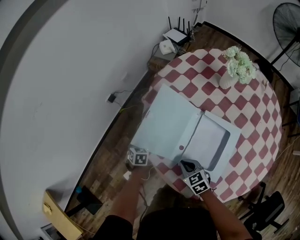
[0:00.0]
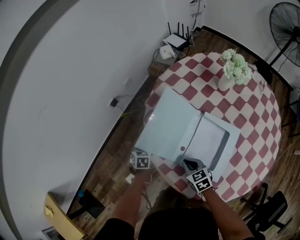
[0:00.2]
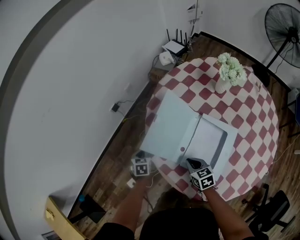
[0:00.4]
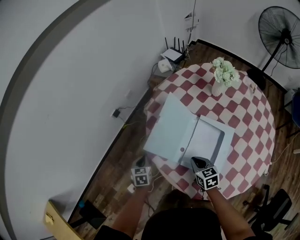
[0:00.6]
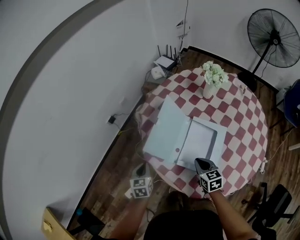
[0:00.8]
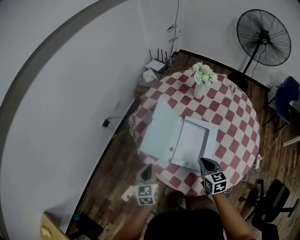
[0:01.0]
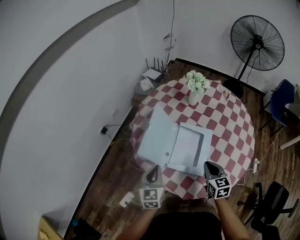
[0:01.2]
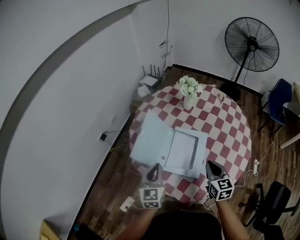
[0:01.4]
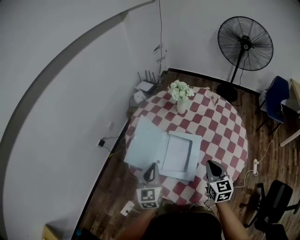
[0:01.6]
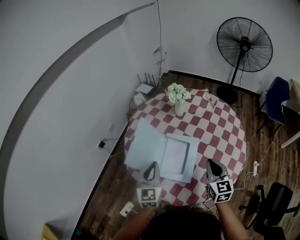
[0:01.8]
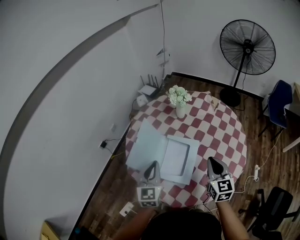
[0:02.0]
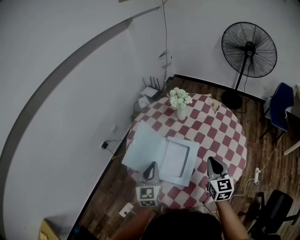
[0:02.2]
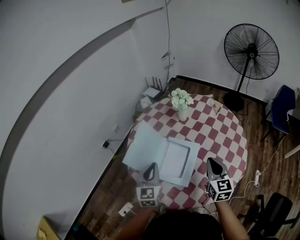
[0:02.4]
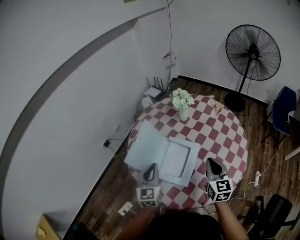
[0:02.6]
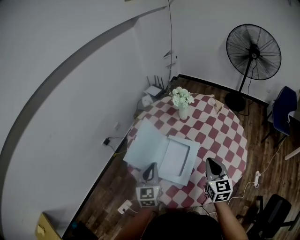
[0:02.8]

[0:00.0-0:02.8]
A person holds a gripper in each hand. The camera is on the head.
0:00.0 to 0:01.4: The right gripper moves roughly 35 cm, and turns by some 40 degrees, while the left gripper moves upward, some 35 cm, and tilts its fingers about 50 degrees upward.
0:01.4 to 0:02.8: The left gripper heads to the right, covering approximately 10 cm. The right gripper moves to the right and upward, some 10 cm.

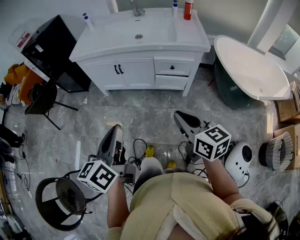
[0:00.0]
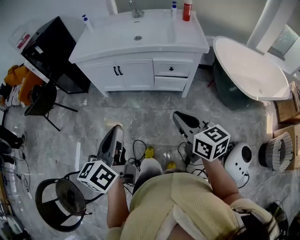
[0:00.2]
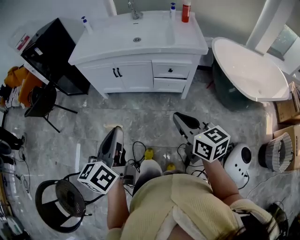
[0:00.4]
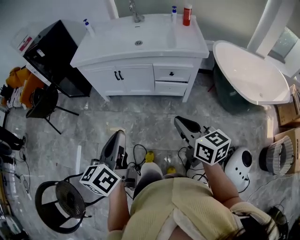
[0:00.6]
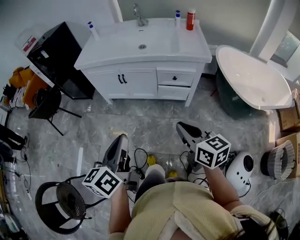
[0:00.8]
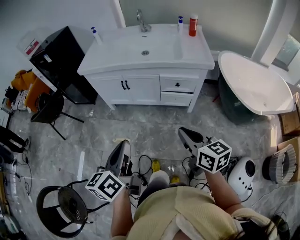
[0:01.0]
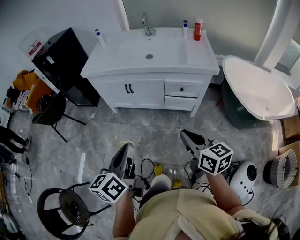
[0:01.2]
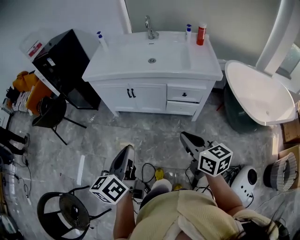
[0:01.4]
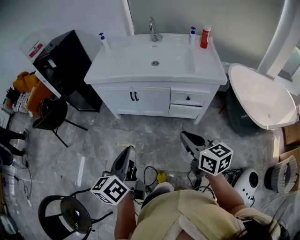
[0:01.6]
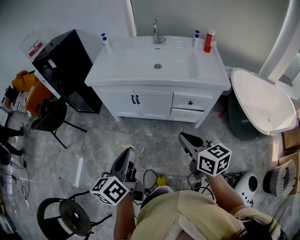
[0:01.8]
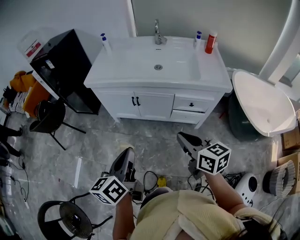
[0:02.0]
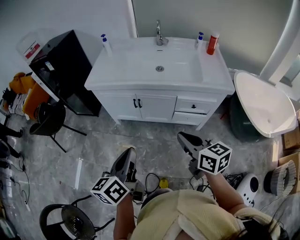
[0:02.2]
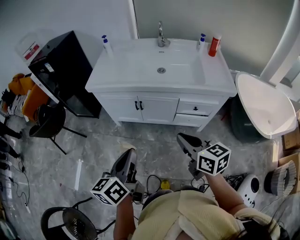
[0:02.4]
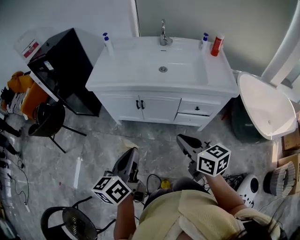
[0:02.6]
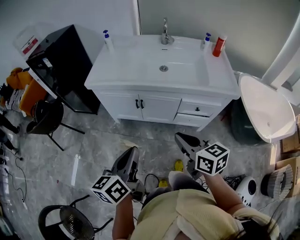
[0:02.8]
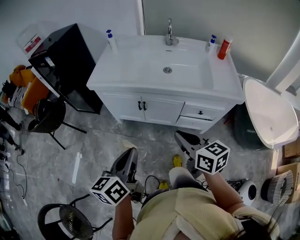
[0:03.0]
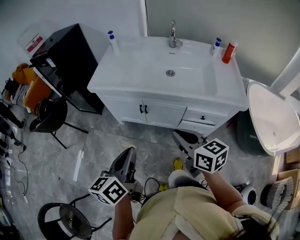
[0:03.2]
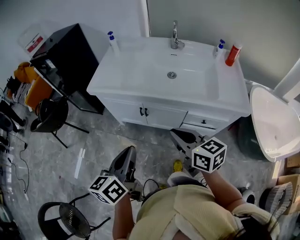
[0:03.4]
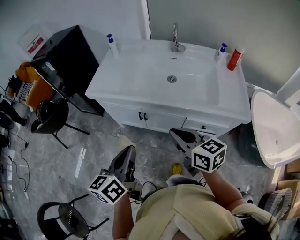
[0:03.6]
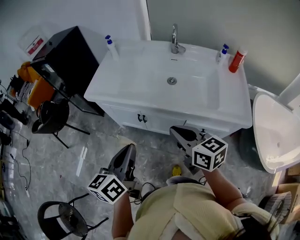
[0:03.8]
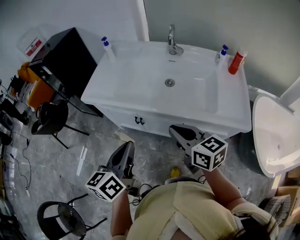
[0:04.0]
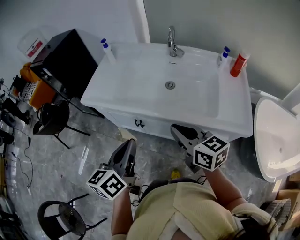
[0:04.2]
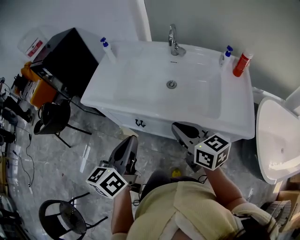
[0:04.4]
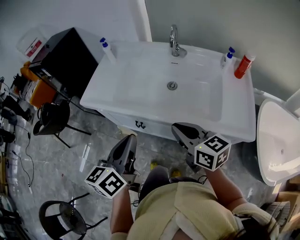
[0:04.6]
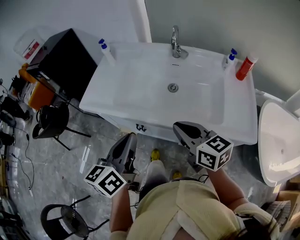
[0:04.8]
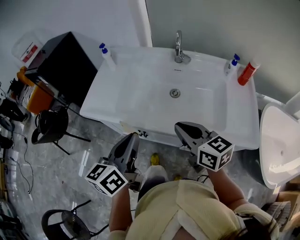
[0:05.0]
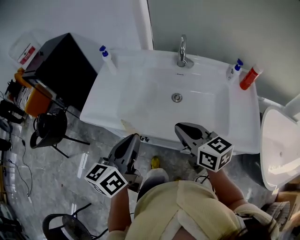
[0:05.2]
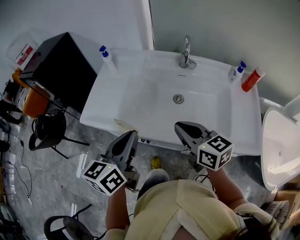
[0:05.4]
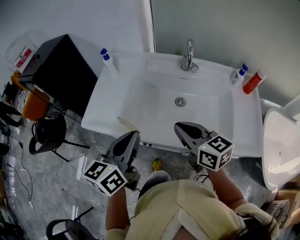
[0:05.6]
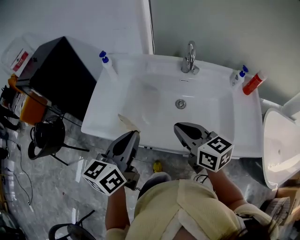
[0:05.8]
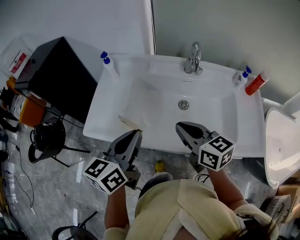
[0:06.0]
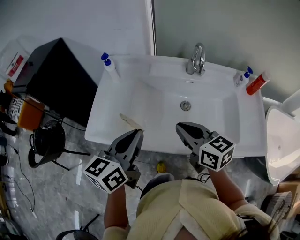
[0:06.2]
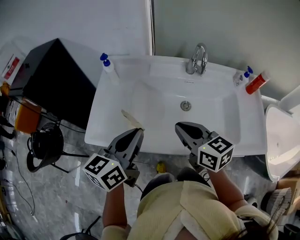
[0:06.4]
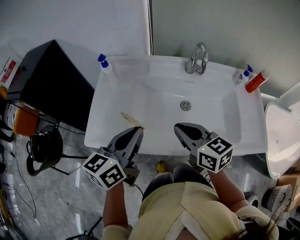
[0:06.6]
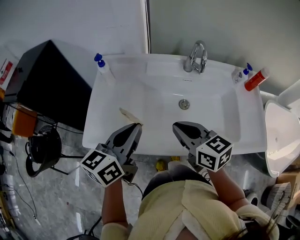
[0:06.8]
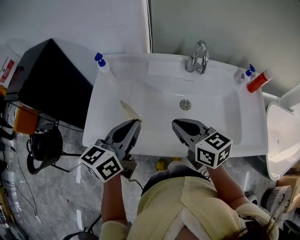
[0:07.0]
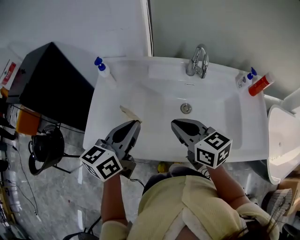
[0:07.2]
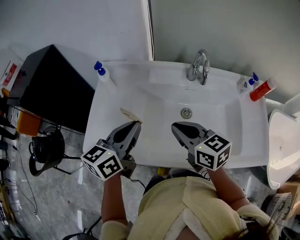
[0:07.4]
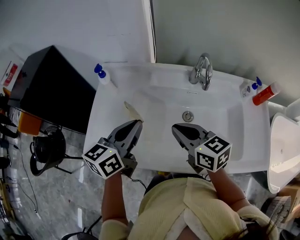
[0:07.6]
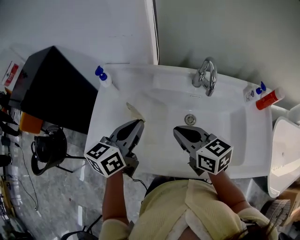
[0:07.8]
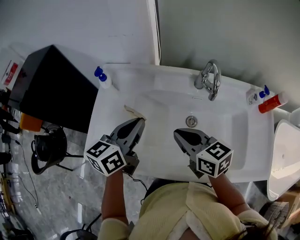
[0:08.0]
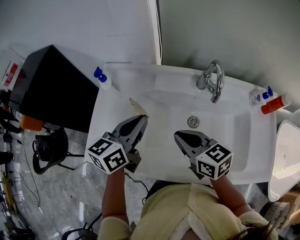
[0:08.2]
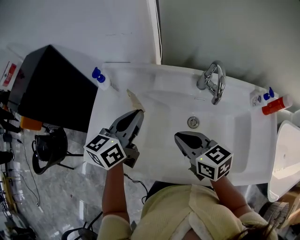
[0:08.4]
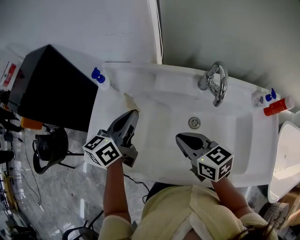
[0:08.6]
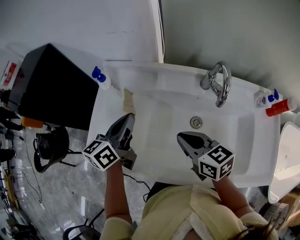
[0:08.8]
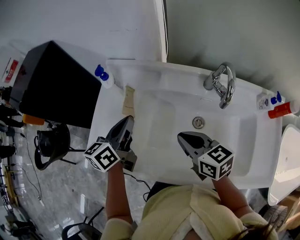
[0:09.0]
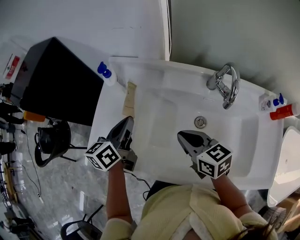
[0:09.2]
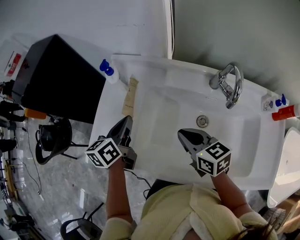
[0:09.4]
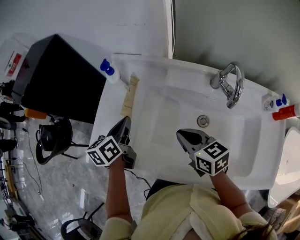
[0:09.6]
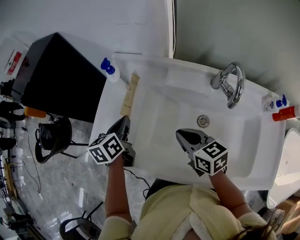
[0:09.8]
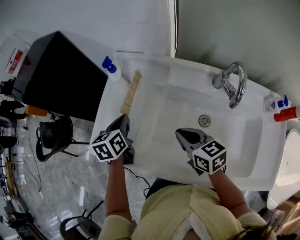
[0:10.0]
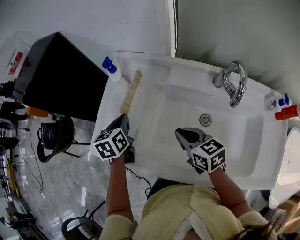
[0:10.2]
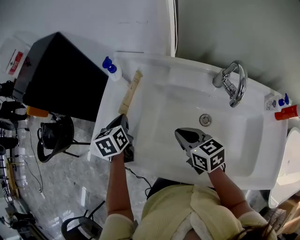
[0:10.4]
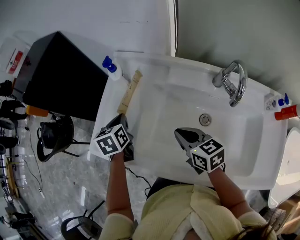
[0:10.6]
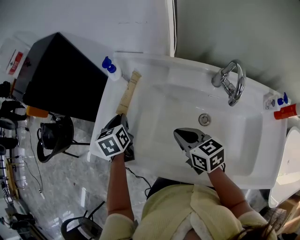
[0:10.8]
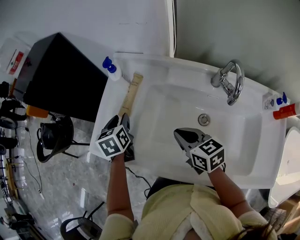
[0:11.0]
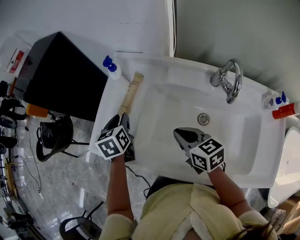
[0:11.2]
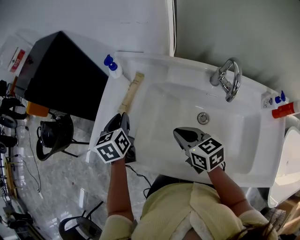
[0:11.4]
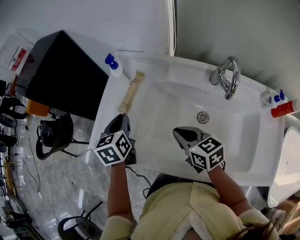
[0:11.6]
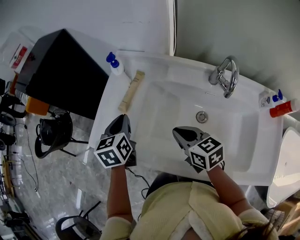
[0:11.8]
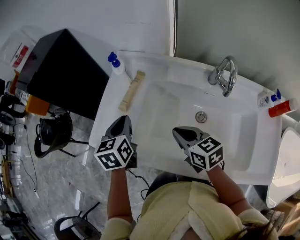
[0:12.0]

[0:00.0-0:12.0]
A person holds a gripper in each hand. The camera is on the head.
0:00.0 to 0:01.6: Both grippers move forward, about 10 cm.
0:01.6 to 0:03.0: The left gripper shifts roughly 15 cm forward. Meanwhile the right gripper shifts about 20 cm forward and to the left.
0:03.0 to 0:04.4: The two grippers go some 20 cm forward and to the right.
0:04.4 to 0:06.0: The grippers both shift forward by about 20 cm.
0:06.0 to 0:07.6: Both grippers move forward, about 10 cm.
0:07.6 to 0:09.0: The right gripper moves downward, some 5 cm; the left gripper goes approximately 10 cm forward, downward and to the left.
0:09.0 to 0:10.4: The left gripper heads downward and to the left, covering roughly 10 cm, and changes its angle by some 40 degrees; the right gripper shifts by about 5 cm.
0:10.4 to 0:12.0: The left gripper moves upward and backward, roughly 10 cm, and opens, then closes once more.

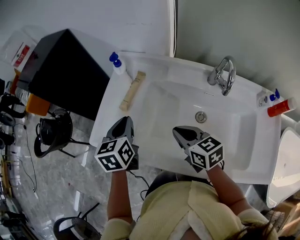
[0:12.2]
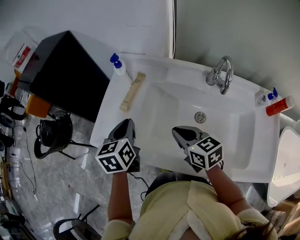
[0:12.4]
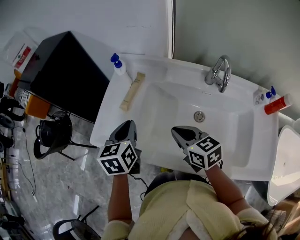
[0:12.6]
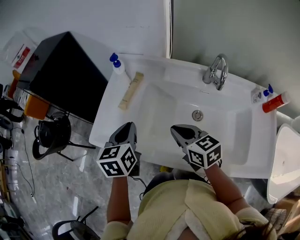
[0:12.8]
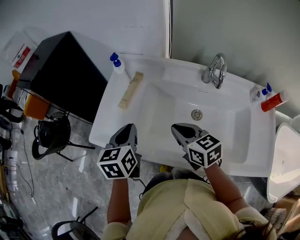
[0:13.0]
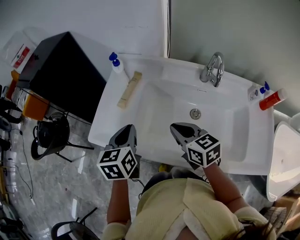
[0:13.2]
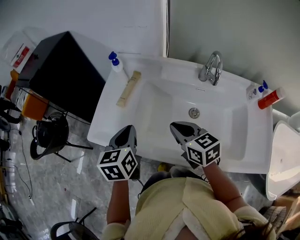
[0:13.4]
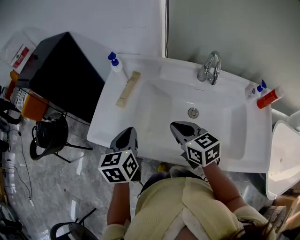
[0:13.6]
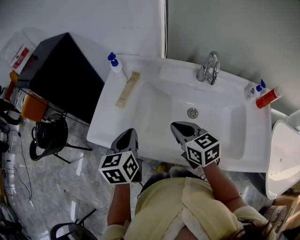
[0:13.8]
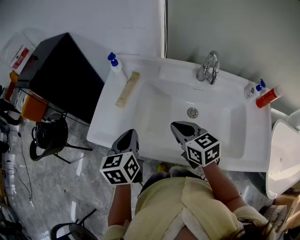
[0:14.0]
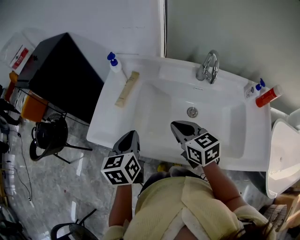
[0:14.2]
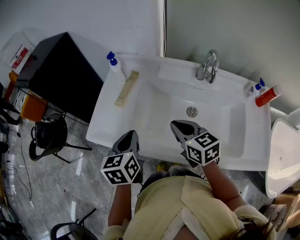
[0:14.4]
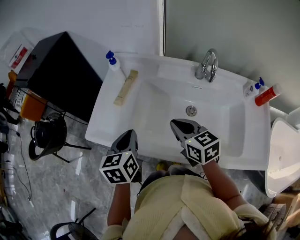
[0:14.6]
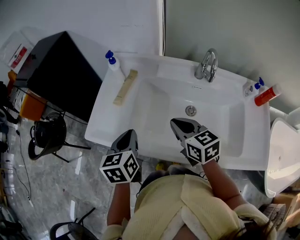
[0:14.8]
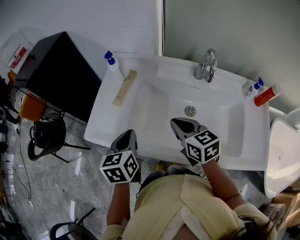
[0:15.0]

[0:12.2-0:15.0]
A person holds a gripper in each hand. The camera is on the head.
0:12.2 to 0:13.6: The left gripper shifts some 10 cm backward.
0:13.6 to 0:15.0: The grippers stay close to where they were, moving slightly.

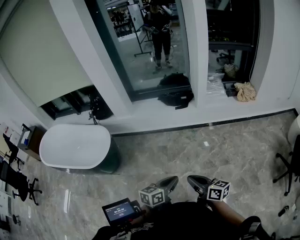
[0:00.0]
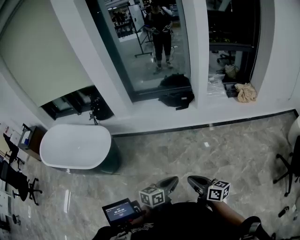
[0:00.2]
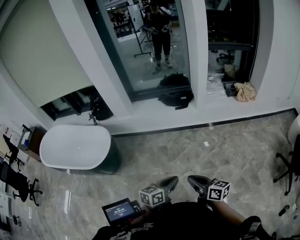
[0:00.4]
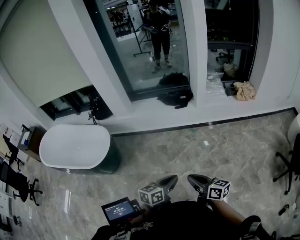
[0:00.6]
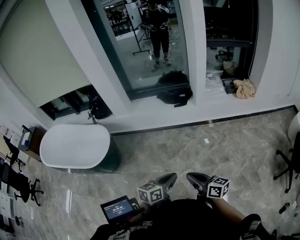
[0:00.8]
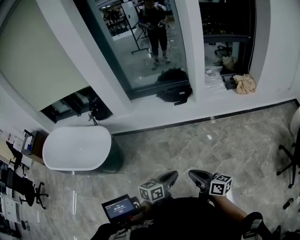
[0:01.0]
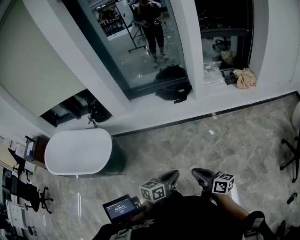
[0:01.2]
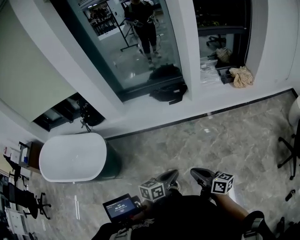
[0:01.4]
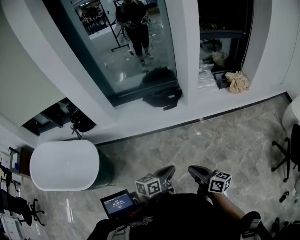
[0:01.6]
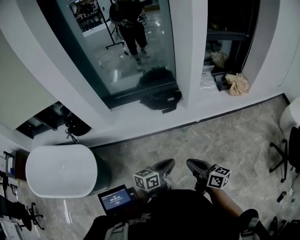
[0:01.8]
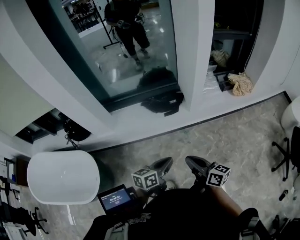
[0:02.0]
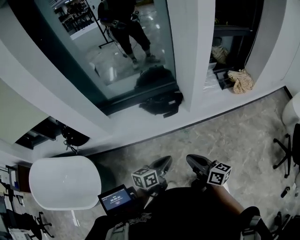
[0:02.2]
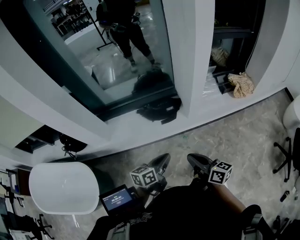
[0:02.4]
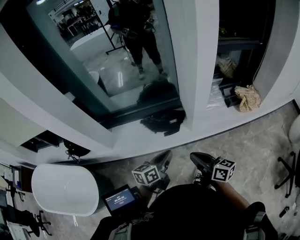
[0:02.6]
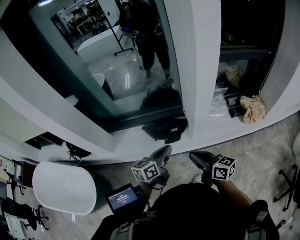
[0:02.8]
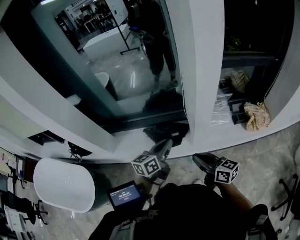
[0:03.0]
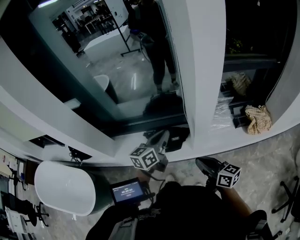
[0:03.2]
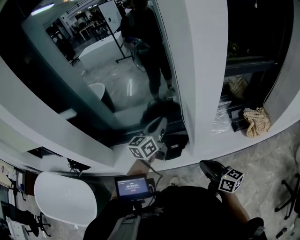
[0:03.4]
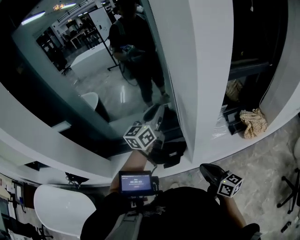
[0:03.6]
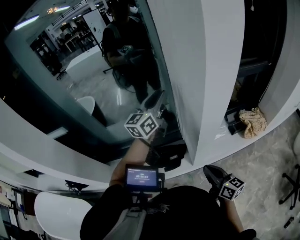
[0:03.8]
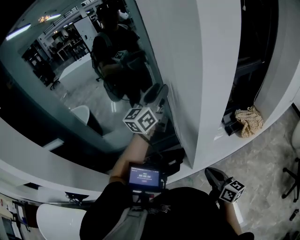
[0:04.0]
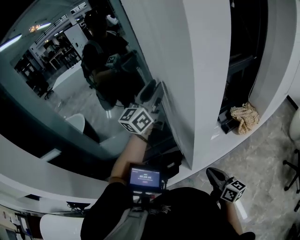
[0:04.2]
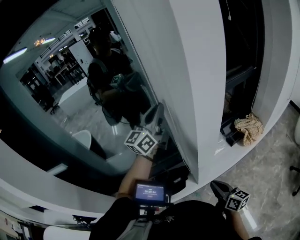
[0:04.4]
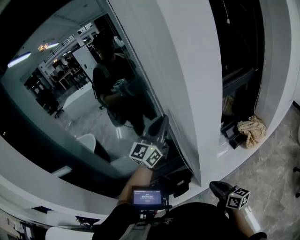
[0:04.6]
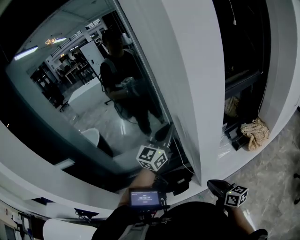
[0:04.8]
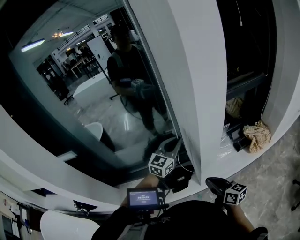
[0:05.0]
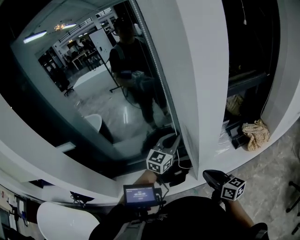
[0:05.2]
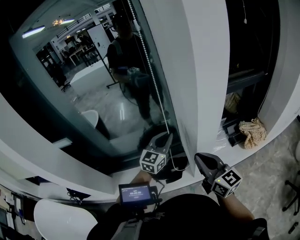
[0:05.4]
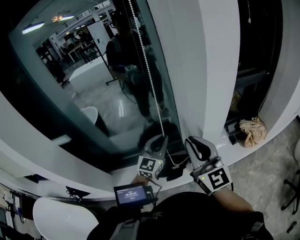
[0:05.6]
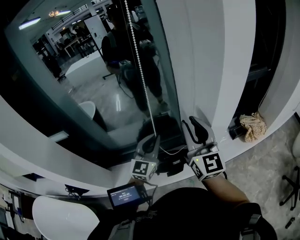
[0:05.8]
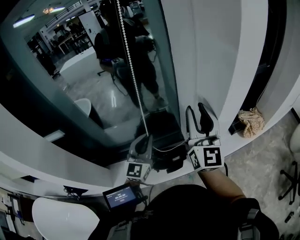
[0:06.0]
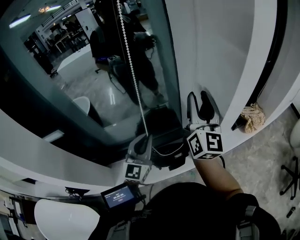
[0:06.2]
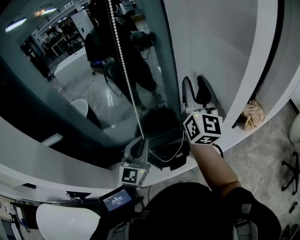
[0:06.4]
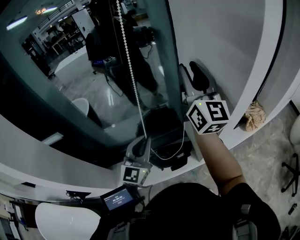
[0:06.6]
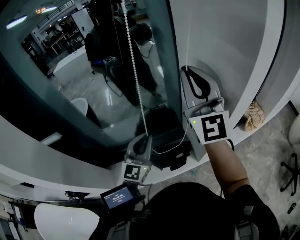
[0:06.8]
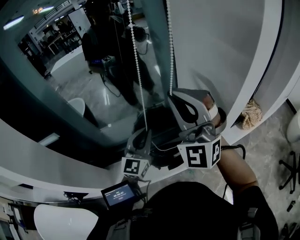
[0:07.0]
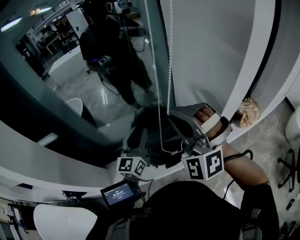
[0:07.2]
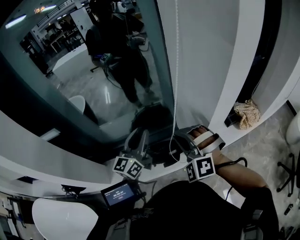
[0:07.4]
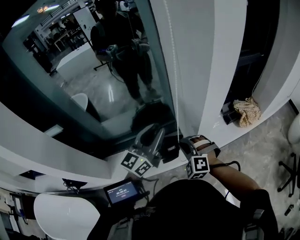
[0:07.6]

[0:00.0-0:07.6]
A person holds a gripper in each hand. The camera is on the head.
0:00.0 to 0:01.6: The two grippers go some 15 cm forward.
0:01.6 to 0:03.0: The two grippers travel together, forward, roughly 50 cm.
0:03.0 to 0:04.6: The right gripper changes place by some 10 cm, and swivels some 30 degrees; the left gripper shifts by about 35 cm, changes its angle by approximately 50 degrees, and opens, then closes again.
0:04.6 to 0:06.0: The right gripper shifts some 30 cm upward and forward, rotates about 50 degrees, and opens its fingers; the left gripper travels to the left, downward and backward by roughly 25 cm, and turns by about 30 degrees.
0:06.0 to 0:07.6: The left gripper goes about 10 cm to the right, and swivels approximately 30 degrees. Meanwhile the right gripper shifts roughly 25 cm downward, tips its fingers downward by roughly 60 degrees, and closes up.
